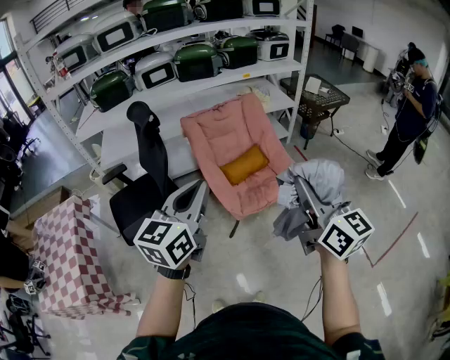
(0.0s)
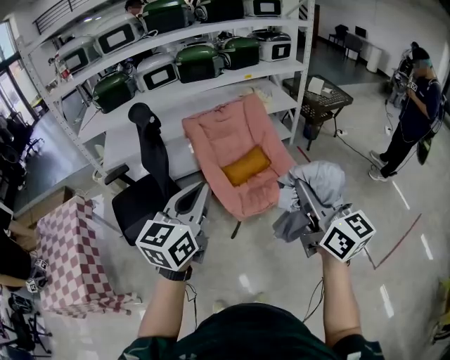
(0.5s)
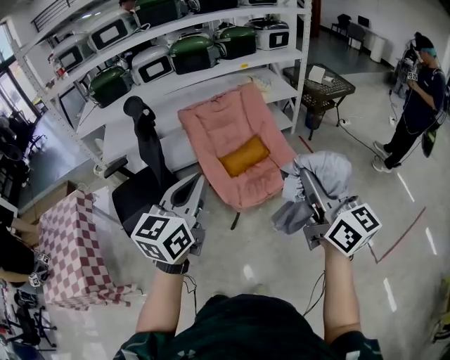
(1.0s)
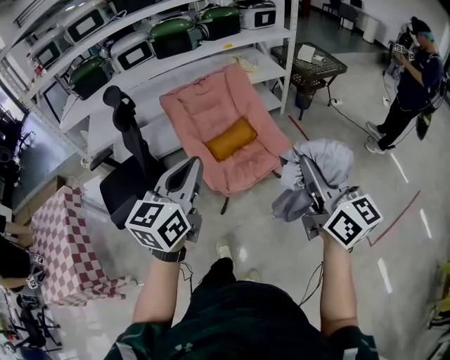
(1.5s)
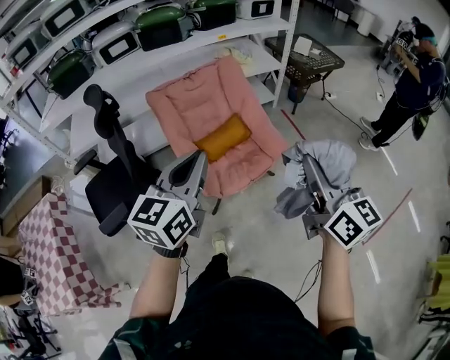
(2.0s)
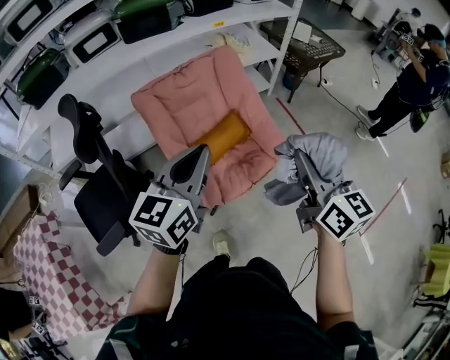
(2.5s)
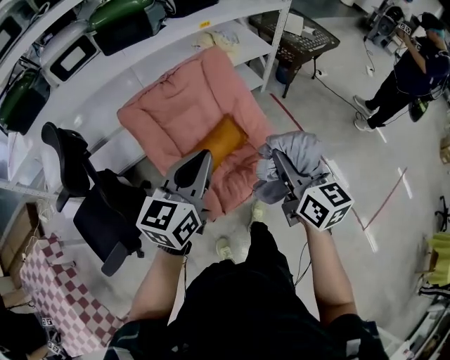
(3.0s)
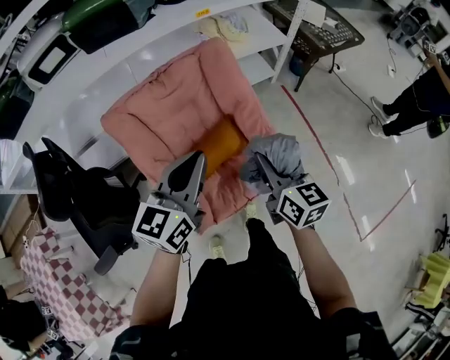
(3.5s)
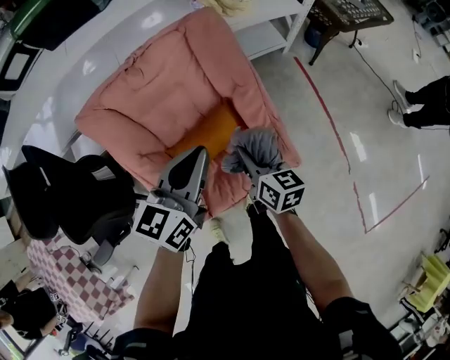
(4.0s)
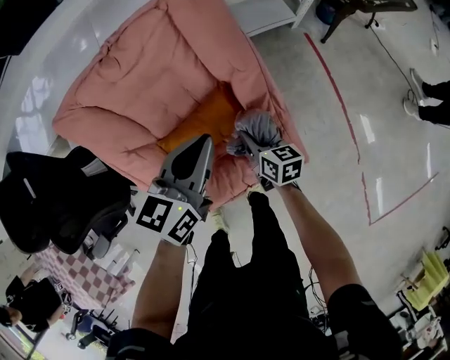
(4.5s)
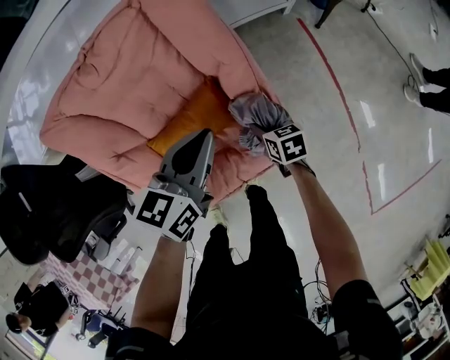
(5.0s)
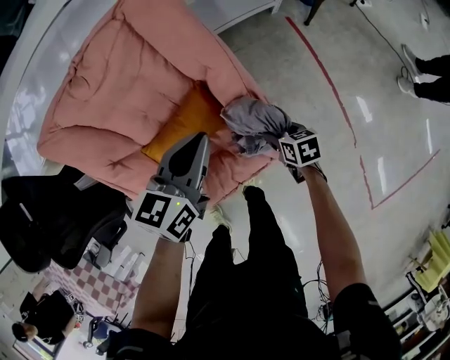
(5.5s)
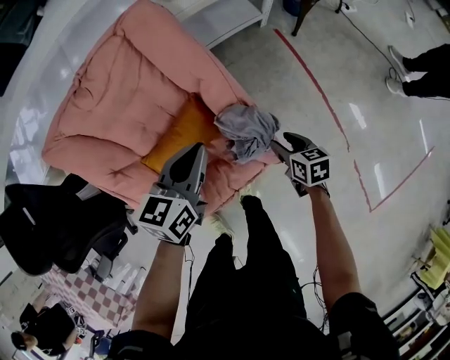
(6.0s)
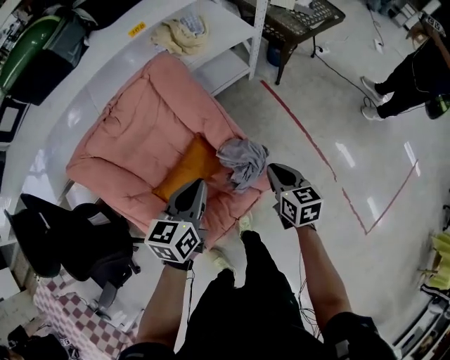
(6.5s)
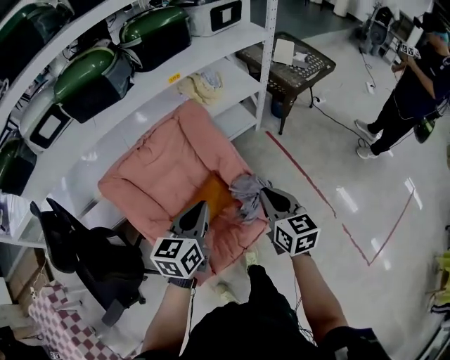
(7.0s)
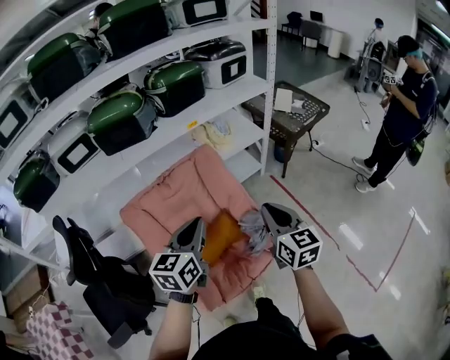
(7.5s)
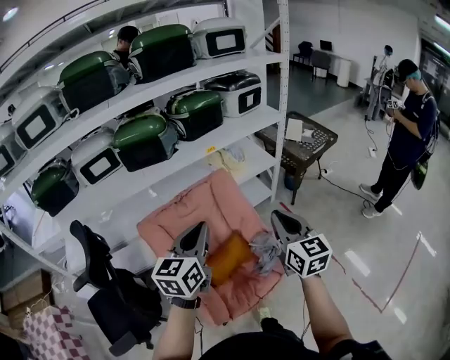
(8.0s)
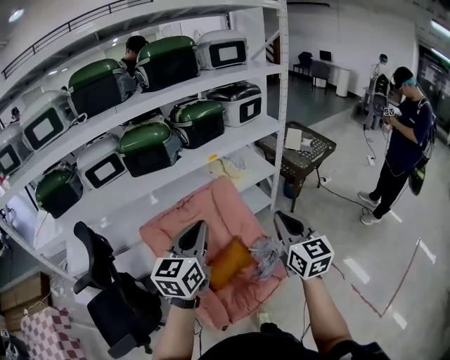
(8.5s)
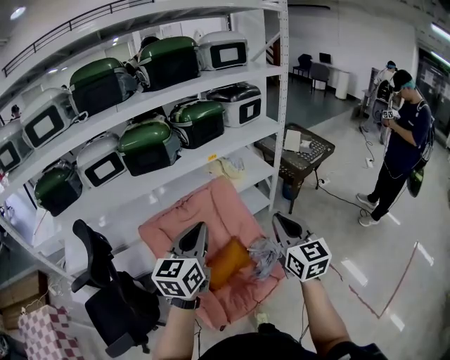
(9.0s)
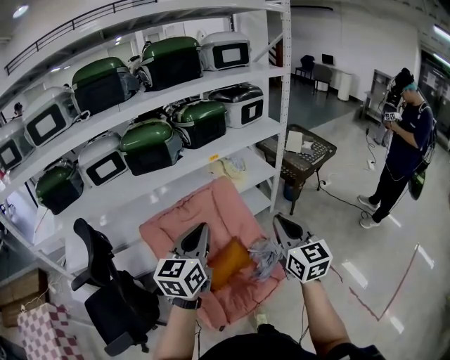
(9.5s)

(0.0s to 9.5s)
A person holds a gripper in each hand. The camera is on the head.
0.0s - 2.0s: The right gripper heads forward, to the right and downward, covering some 20 cm, while the left gripper heads forward and to the right, covering some 20 cm.
2.0s - 4.0s: The pair of grippers is taken forward, roughly 50 cm. The right gripper is displaced downward by about 40 cm, and swivels roughly 30 degrees. The left gripper is displaced downward by about 25 cm.
4.0s - 5.5s: The left gripper moves downward and to the right, approximately 15 cm; the right gripper shifts some 30 cm downward and to the right, tilts its fingers approximately 30 degrees downward, and opens its fingers.
5.5s - 7.5s: The left gripper goes roughly 35 cm upward and backward, while the right gripper travels upward by about 50 cm, tilts its fingers some 50 degrees upward, and closes its fingers.
7.5s - 9.5s: The two grippers go roughly 10 cm upward.

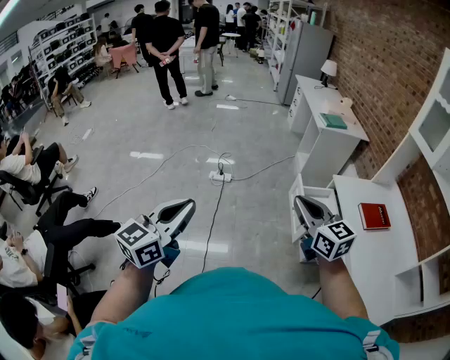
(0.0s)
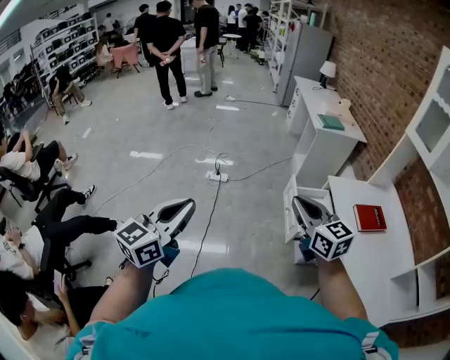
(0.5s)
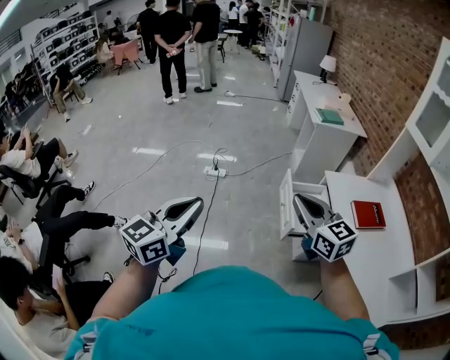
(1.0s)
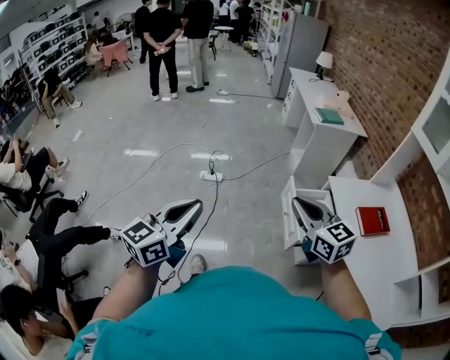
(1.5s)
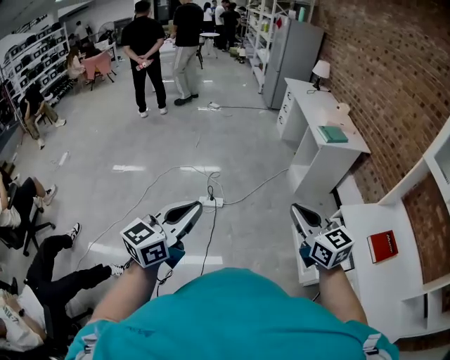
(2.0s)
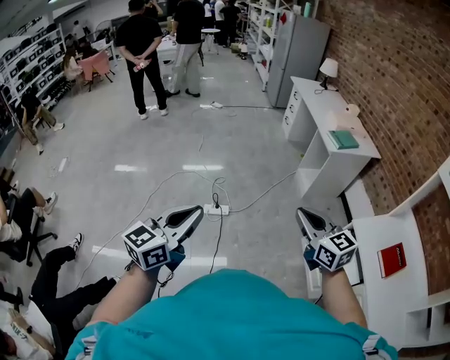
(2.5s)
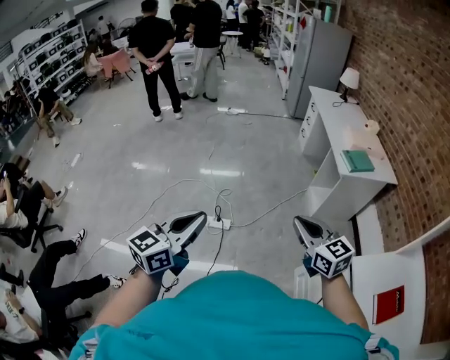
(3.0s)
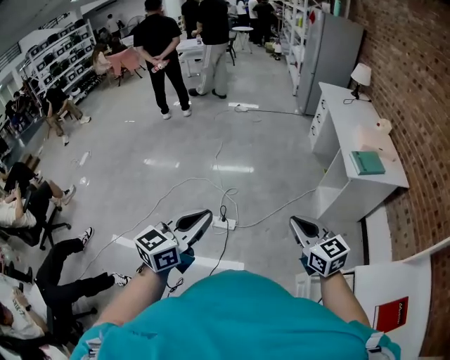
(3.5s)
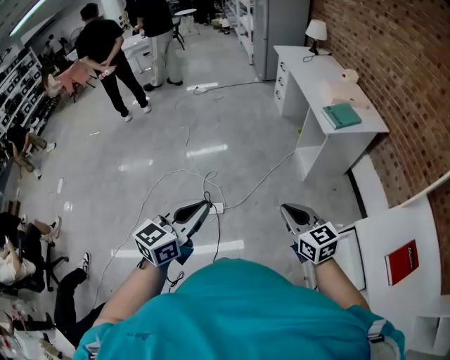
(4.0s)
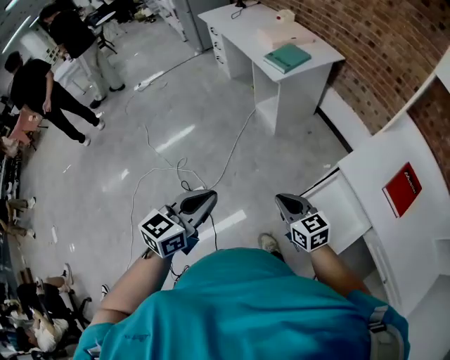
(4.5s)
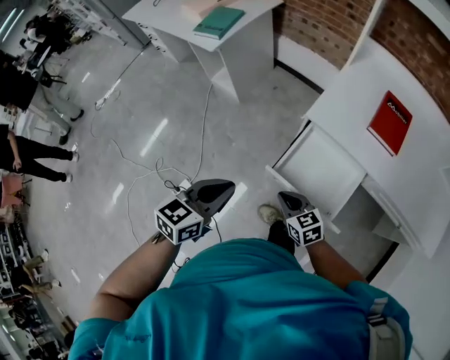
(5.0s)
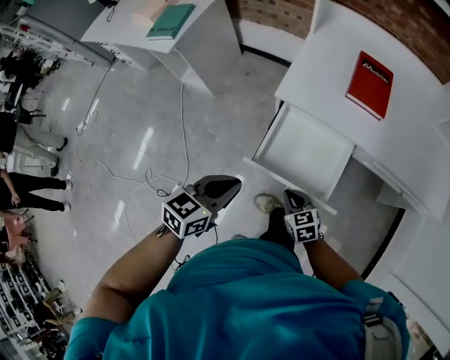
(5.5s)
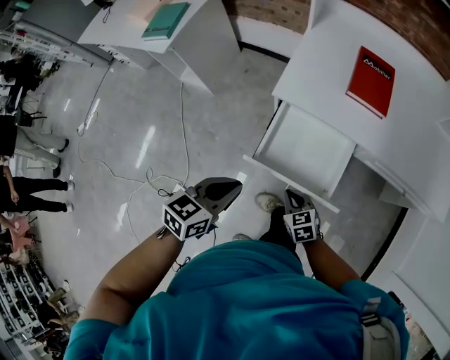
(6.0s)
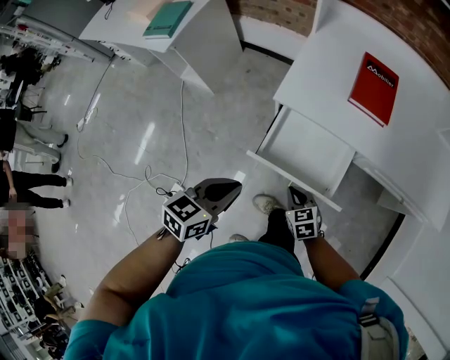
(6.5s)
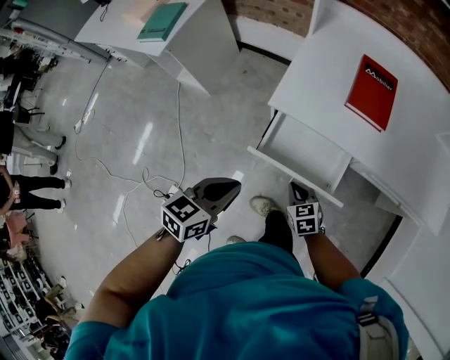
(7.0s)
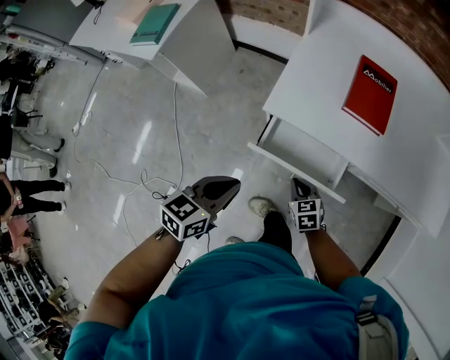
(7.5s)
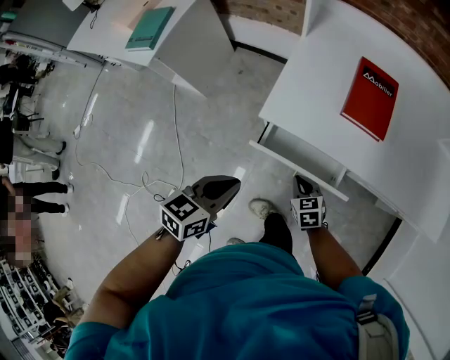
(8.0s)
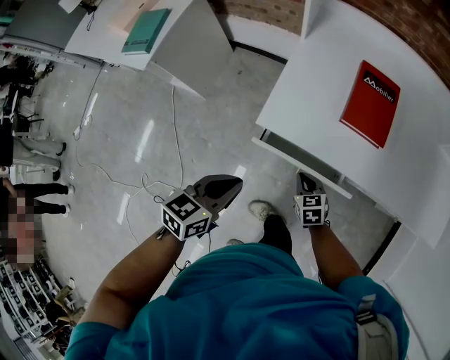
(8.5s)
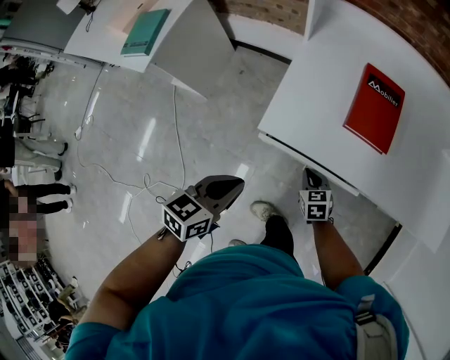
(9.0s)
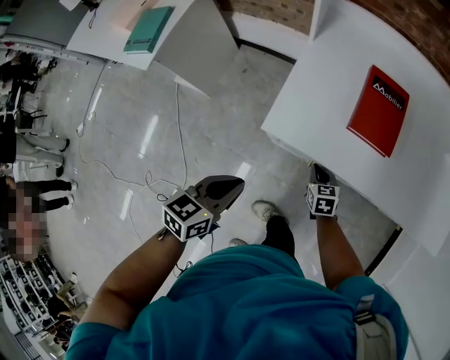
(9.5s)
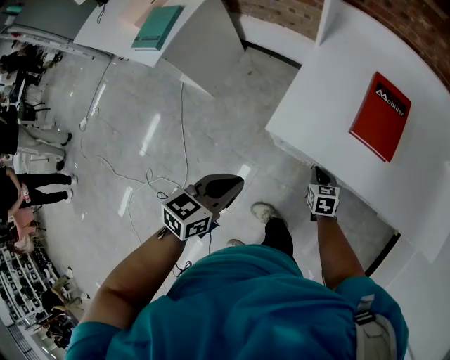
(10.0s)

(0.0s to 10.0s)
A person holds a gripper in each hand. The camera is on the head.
0.0s - 2.0s: Both grippers travel together forward, approximately 25 cm.
2.0s - 4.0s: The left gripper heads forward, covering about 30 cm; the right gripper heads forward and downward, covering some 30 cm.
4.0s - 6.0s: The right gripper moves downward, some 35 cm, and changes its angle by some 60 degrees; the left gripper moves about 40 cm, and changes its angle by about 70 degrees.
6.0s - 8.0s: Both grippers move forward, approximately 15 cm.
8.0s - 10.0s: The right gripper is displaced forward by approximately 10 cm.

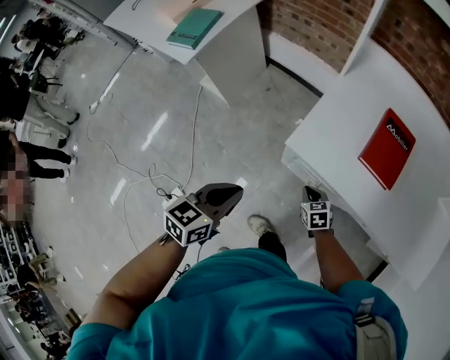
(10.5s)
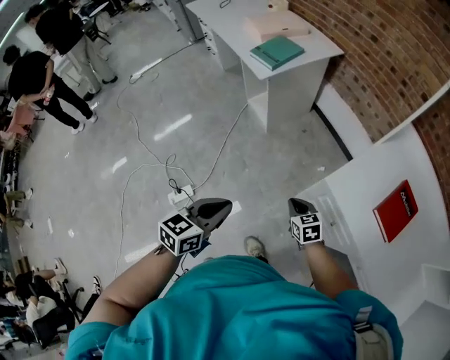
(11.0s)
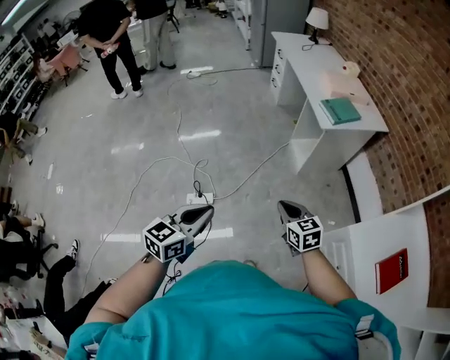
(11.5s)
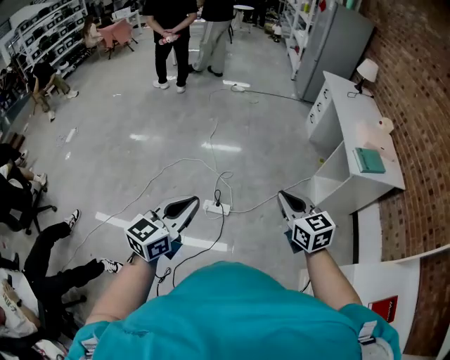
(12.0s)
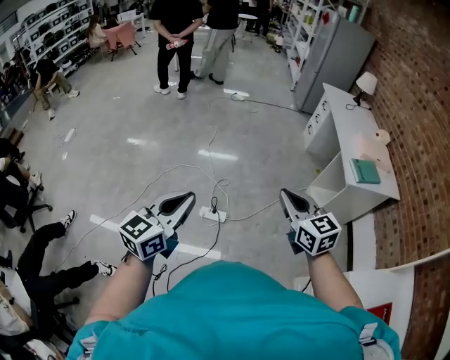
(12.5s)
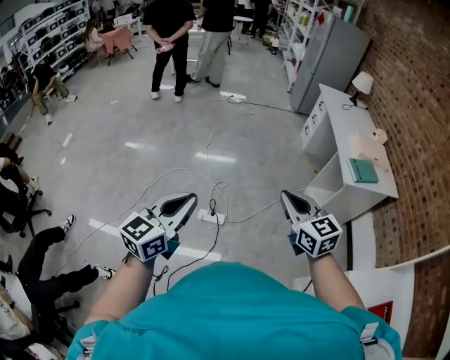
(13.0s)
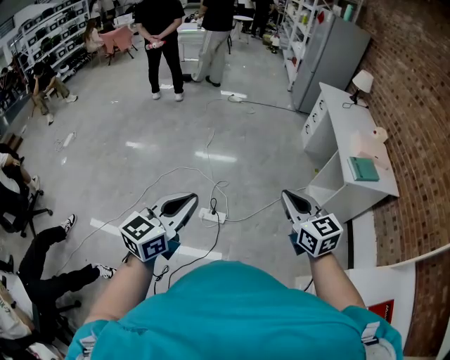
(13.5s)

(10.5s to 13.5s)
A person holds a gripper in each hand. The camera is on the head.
10.5s - 12.0s: Both grippers are carried roughly 60 cm. The left gripper turns by approximately 70 degrees, while the right gripper tips its fingers upward by about 30 degrees.
12.0s - 13.5s: The right gripper is displaced upward by roughly 5 cm.

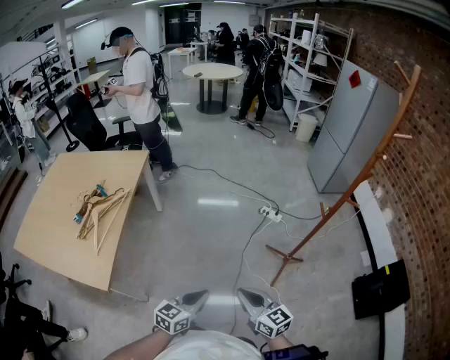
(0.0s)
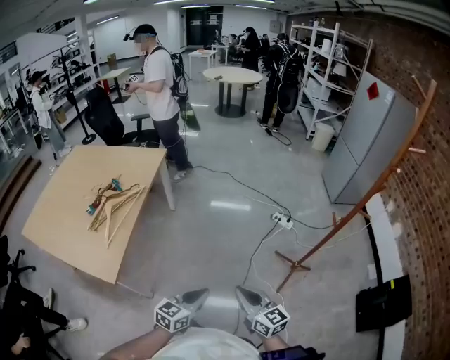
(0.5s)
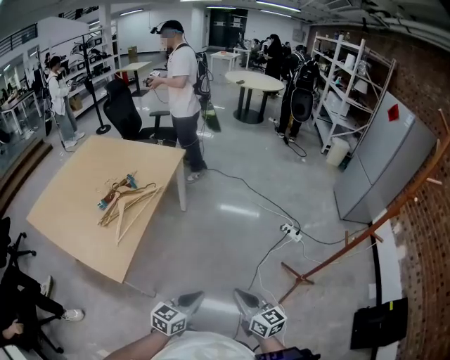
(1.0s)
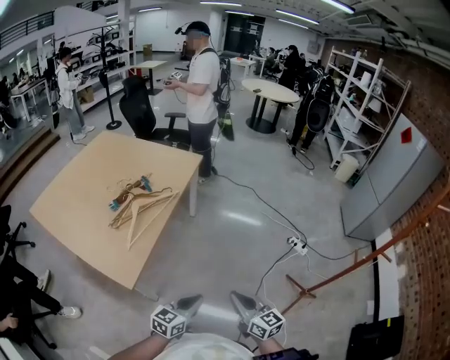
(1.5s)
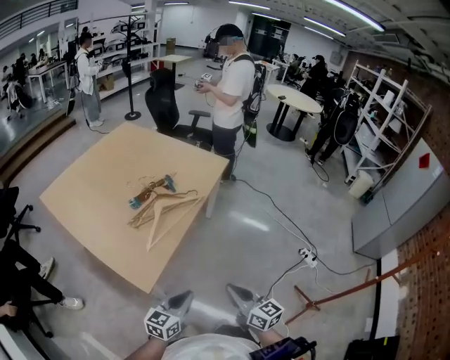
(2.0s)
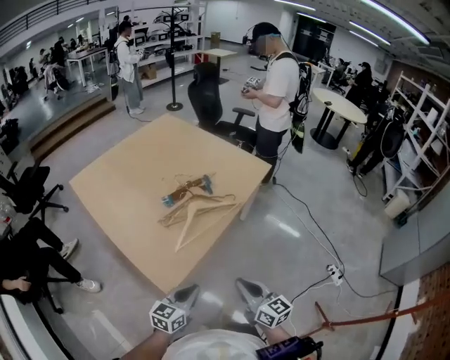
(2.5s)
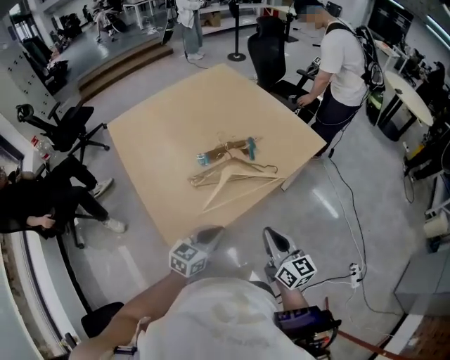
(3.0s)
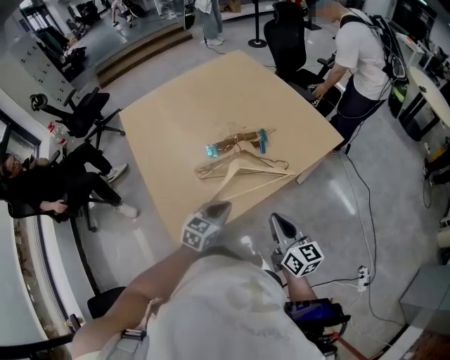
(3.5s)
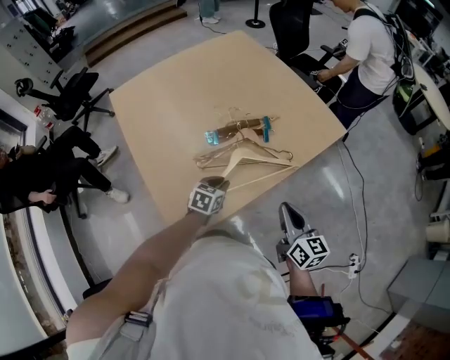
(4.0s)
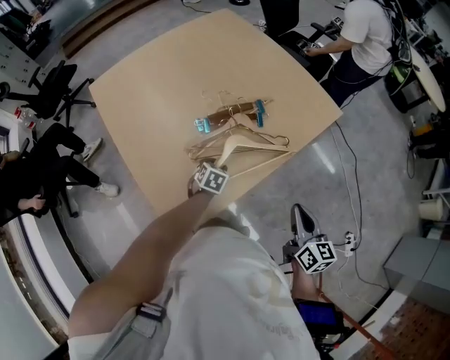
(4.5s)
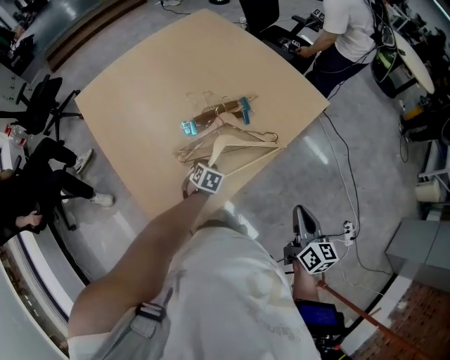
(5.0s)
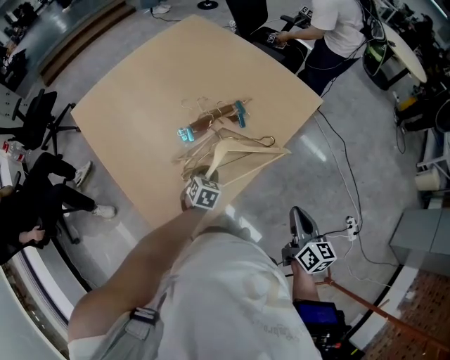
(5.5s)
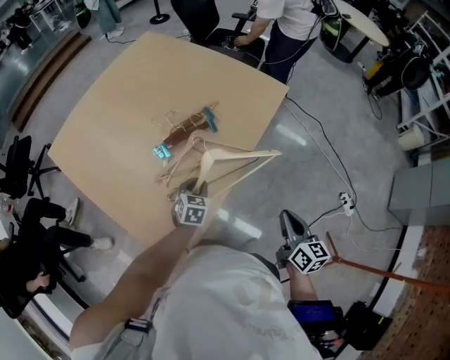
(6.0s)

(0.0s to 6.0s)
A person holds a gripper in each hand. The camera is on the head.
0.0s - 2.0s: The left gripper shifts by roughly 30 cm, and turns by about 30 degrees. The right gripper shifts by approximately 30 cm, and swivels about 20 degrees.
2.0s - 4.0s: The two grippers go roughly 35 cm forward. The left gripper angles its fingers downward, by about 30 degrees.
4.0s - 6.0s: The right gripper travels backward and to the right by some 10 cm, and changes its angle by about 30 degrees, while the left gripper goes downward and returns, some 10 cm each way.
